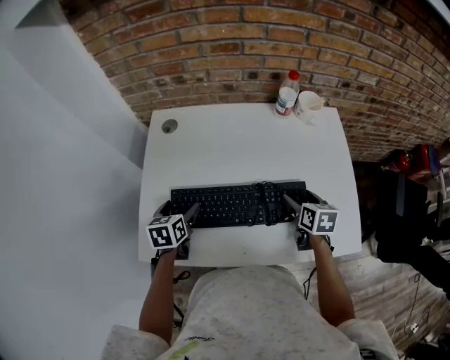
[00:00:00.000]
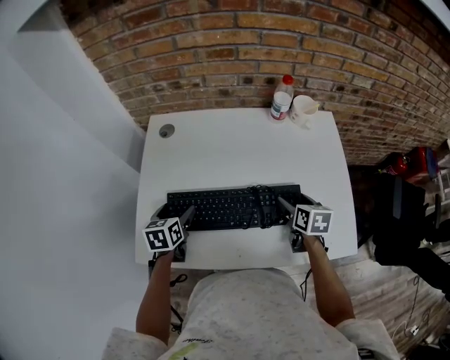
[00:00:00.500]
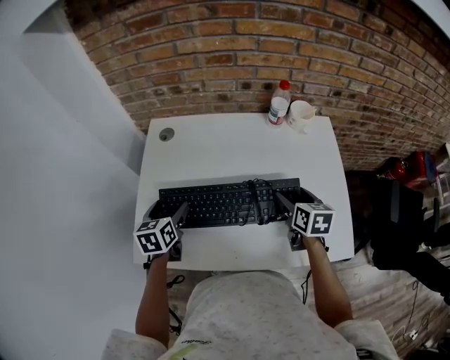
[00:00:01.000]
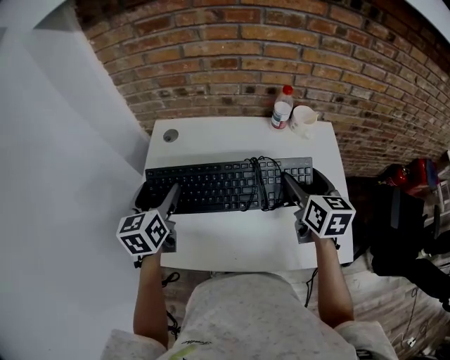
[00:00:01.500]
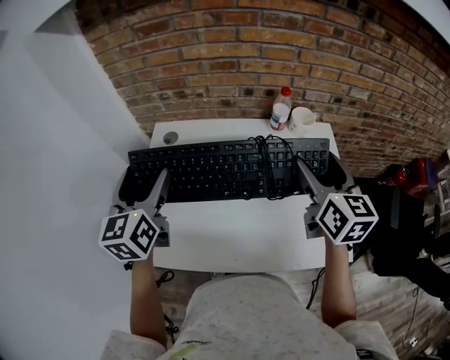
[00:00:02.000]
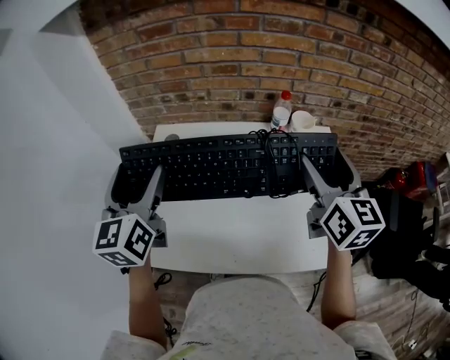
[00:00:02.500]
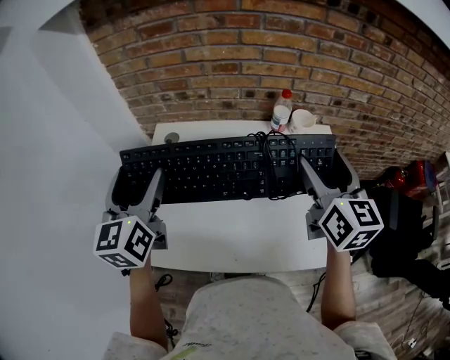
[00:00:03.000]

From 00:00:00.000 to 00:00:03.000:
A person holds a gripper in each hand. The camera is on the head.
From 00:00:00.000 to 00:00:01.500: Both grippers travel together upward, roughly 15 cm. The right gripper turns by some 20 degrees. The left gripper rotates approximately 30 degrees.
From 00:00:01.500 to 00:00:03.000: The grippers both shift upward by some 15 cm.

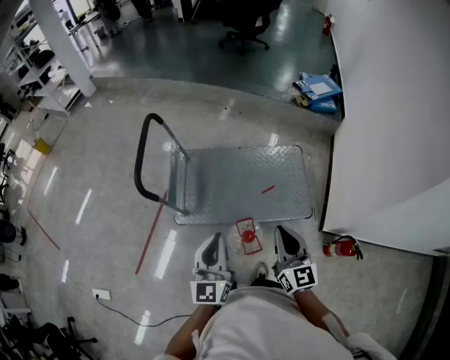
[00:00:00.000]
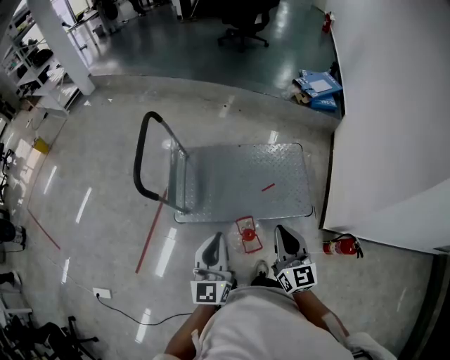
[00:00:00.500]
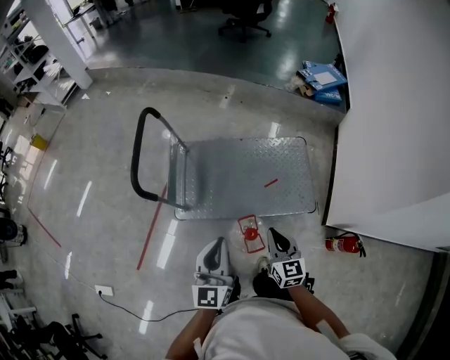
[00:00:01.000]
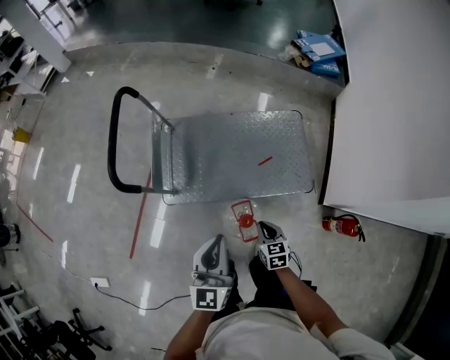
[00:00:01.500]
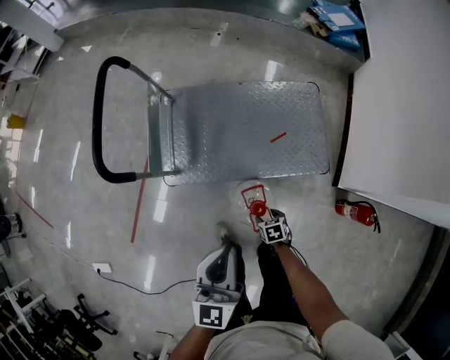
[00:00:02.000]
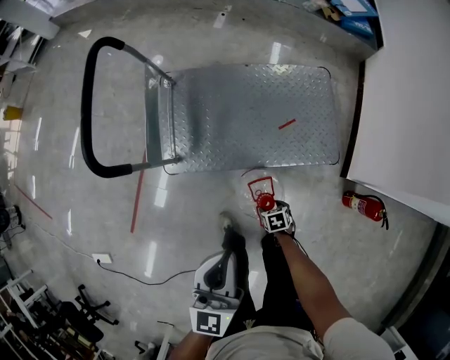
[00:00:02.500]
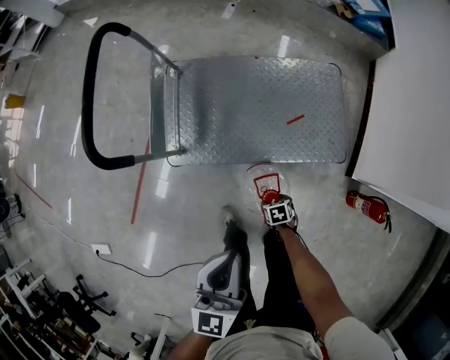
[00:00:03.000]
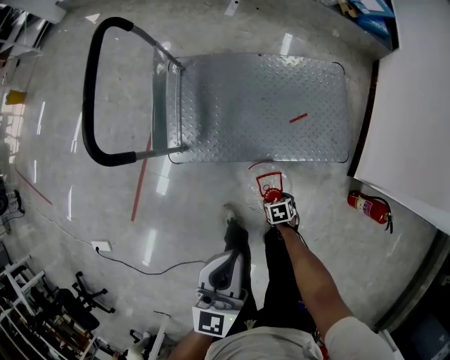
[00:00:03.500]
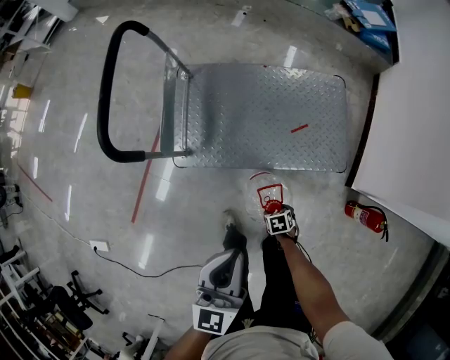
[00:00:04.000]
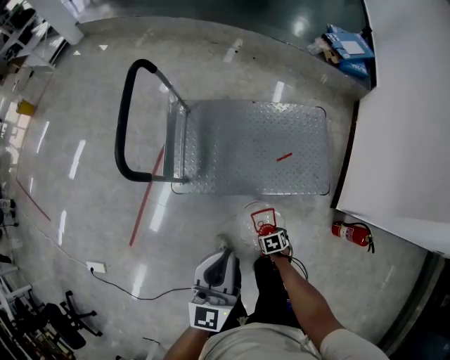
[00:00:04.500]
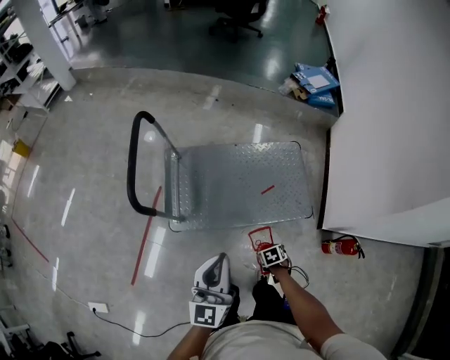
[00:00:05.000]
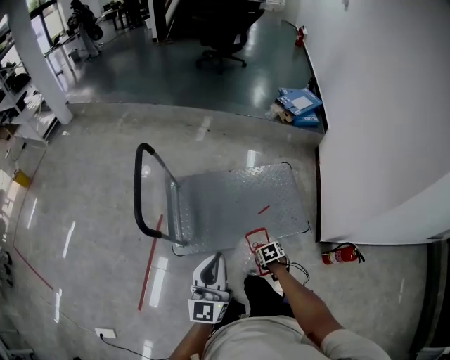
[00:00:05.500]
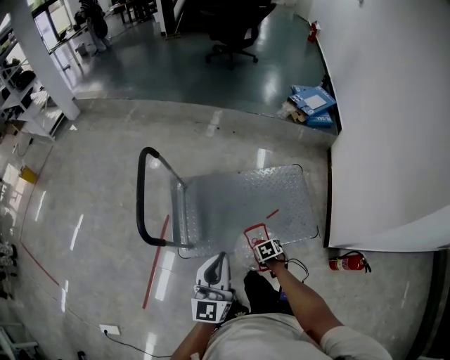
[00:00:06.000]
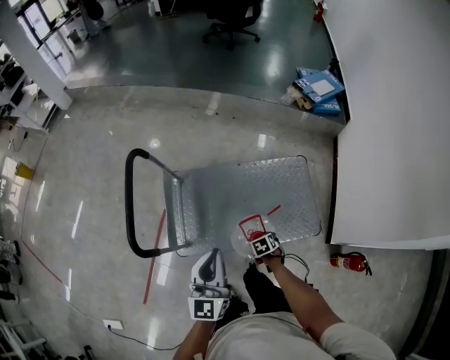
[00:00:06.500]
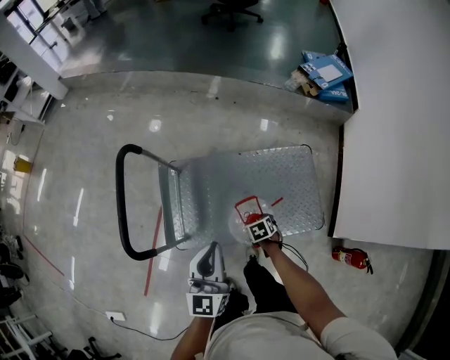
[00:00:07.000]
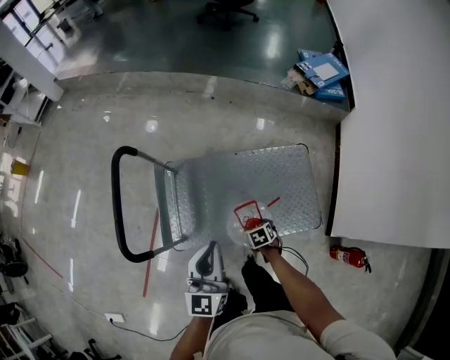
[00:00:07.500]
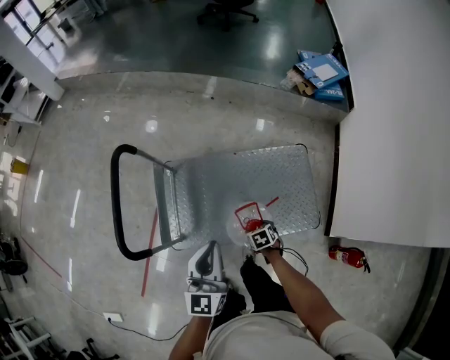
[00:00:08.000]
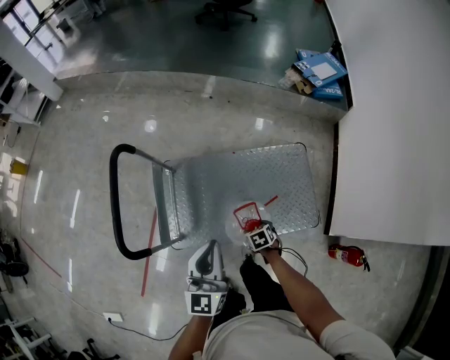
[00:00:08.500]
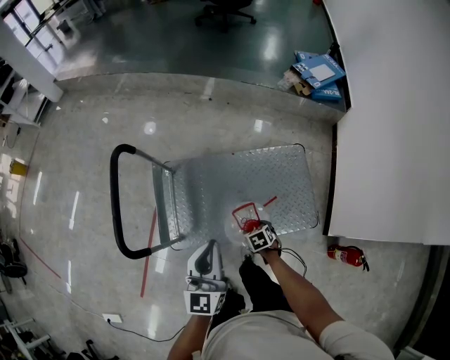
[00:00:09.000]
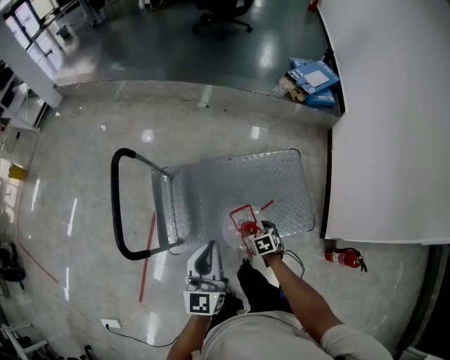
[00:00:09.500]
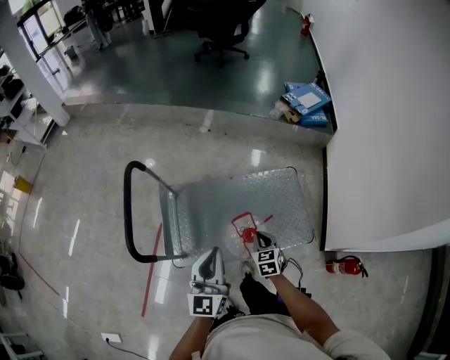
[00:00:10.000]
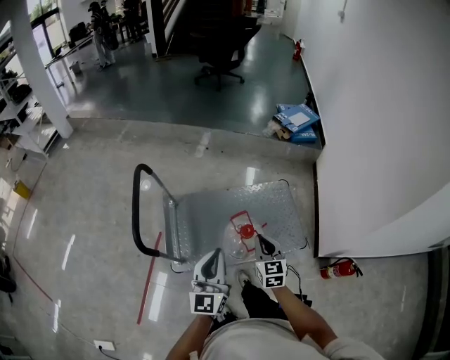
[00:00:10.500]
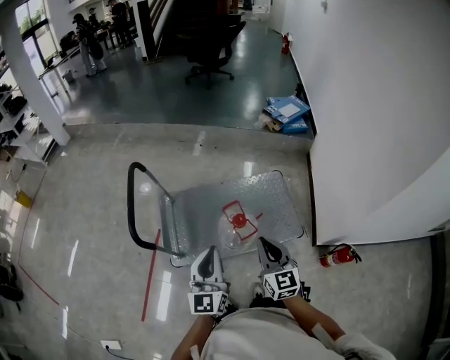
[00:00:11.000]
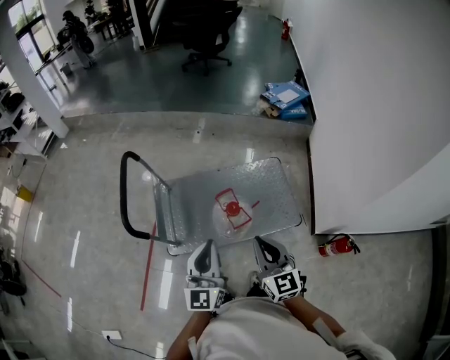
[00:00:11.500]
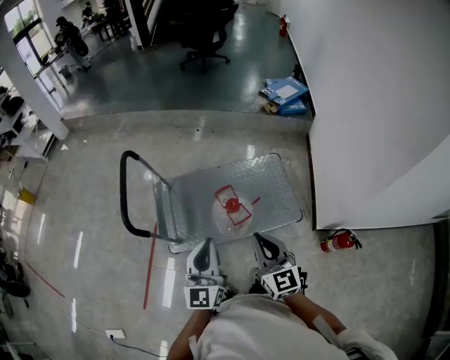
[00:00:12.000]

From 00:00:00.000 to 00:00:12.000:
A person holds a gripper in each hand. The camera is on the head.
From 00:00:00.000 to 00:00:02.000: The left gripper heads downward, covering roughly 10 cm; the right gripper moves downward, about 50 cm, points its fingers about 70 degrees further downward, and opens.
From 00:00:02.000 to 00:00:04.000: The right gripper goes about 5 cm downward; the left gripper changes place by about 5 cm.
From 00:00:04.000 to 00:00:06.000: The two grippers go about 20 cm upward.
From 00:00:06.000 to 00:00:08.000: The right gripper moves some 15 cm; the left gripper ends up some 20 cm from where it was.
From 00:00:08.000 to 00:00:10.000: The left gripper heads backward, covering some 5 cm; the right gripper is displaced upward by about 20 cm, tilts its fingers about 30 degrees upward, and closes.
From 00:00:10.000 to 00:00:12.000: The left gripper shifts about 15 cm backward. The right gripper moves upward and backward, roughly 35 cm, and tips its fingers upward by about 30 degrees.

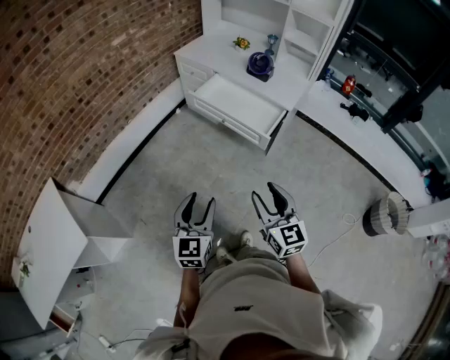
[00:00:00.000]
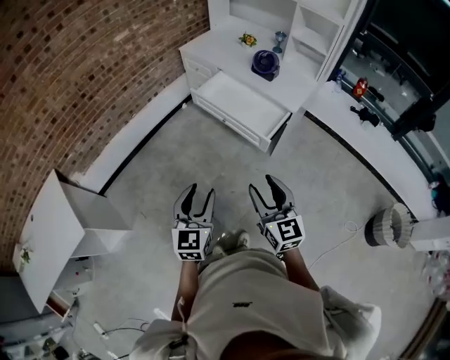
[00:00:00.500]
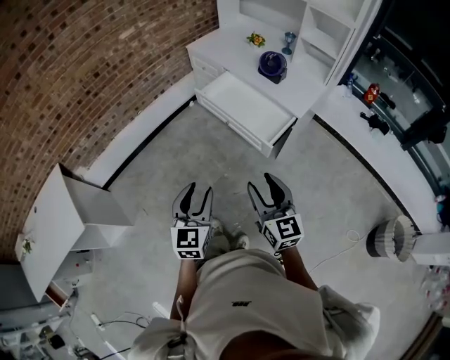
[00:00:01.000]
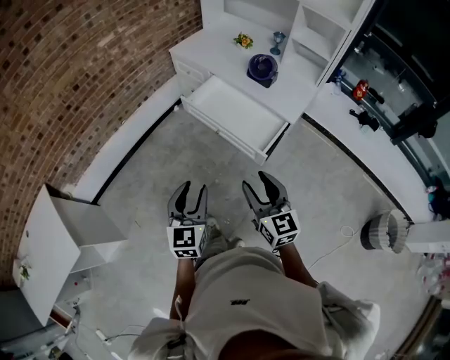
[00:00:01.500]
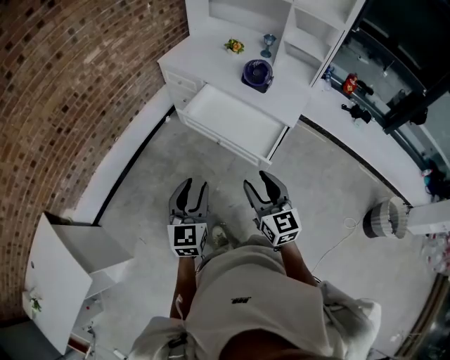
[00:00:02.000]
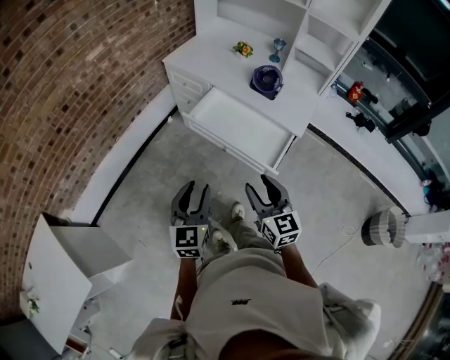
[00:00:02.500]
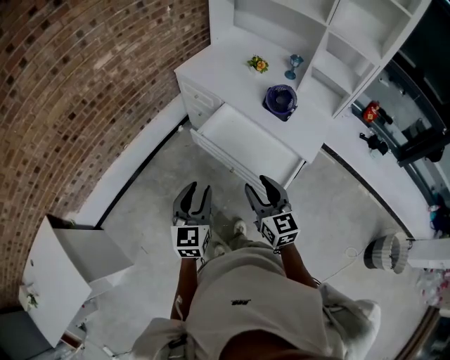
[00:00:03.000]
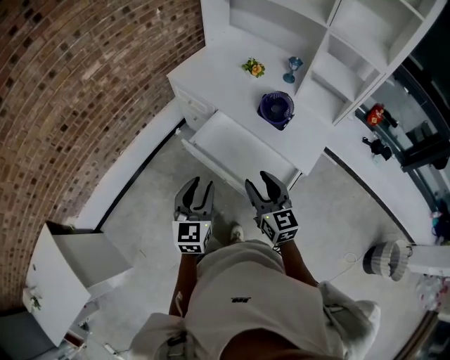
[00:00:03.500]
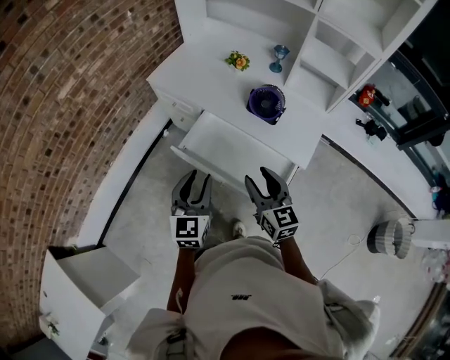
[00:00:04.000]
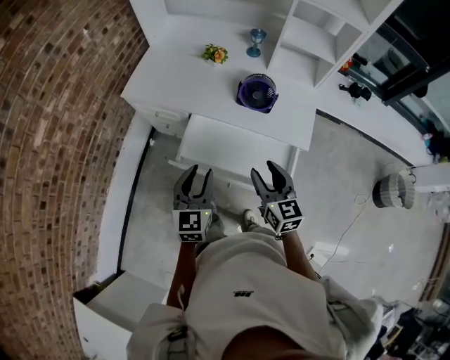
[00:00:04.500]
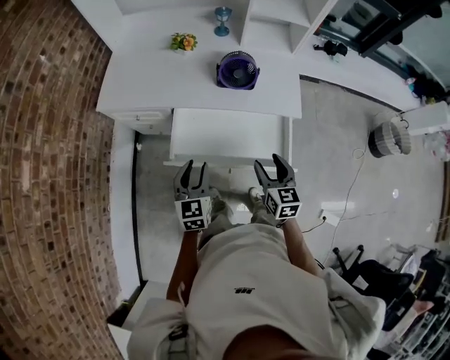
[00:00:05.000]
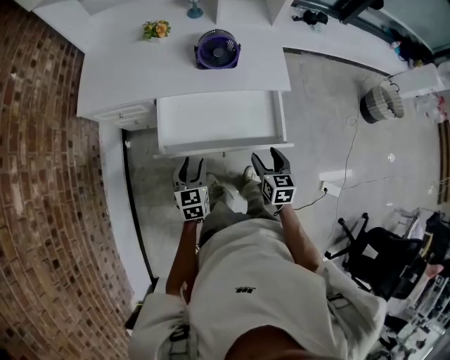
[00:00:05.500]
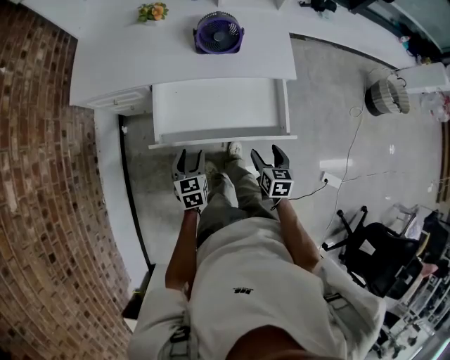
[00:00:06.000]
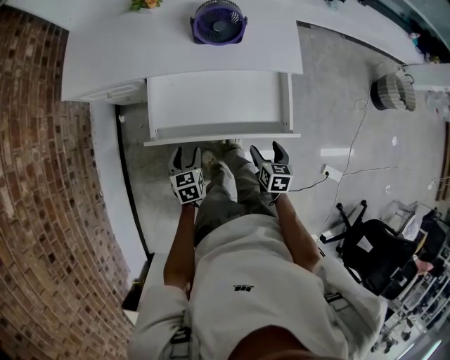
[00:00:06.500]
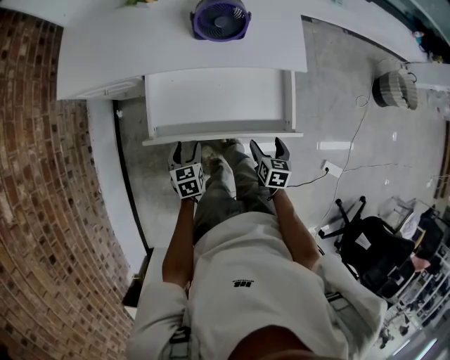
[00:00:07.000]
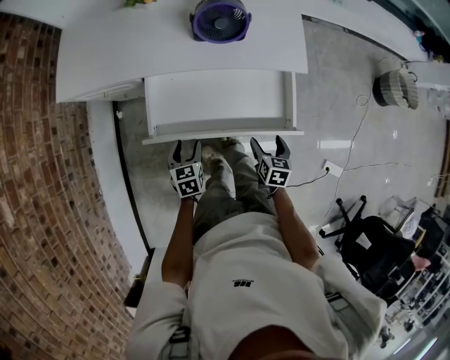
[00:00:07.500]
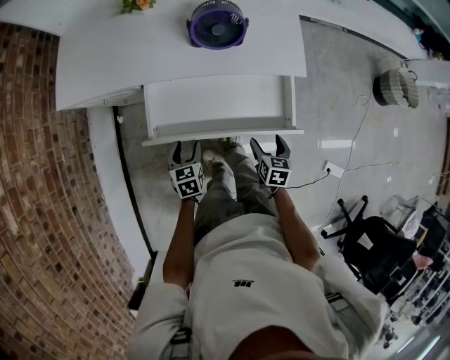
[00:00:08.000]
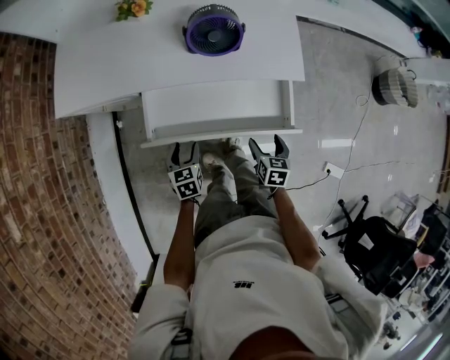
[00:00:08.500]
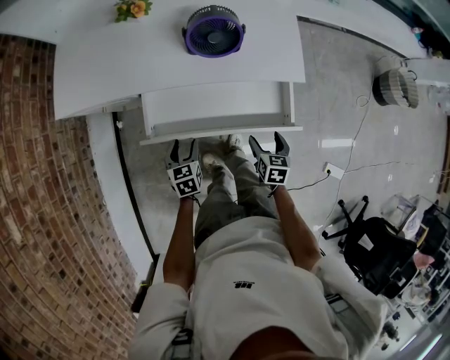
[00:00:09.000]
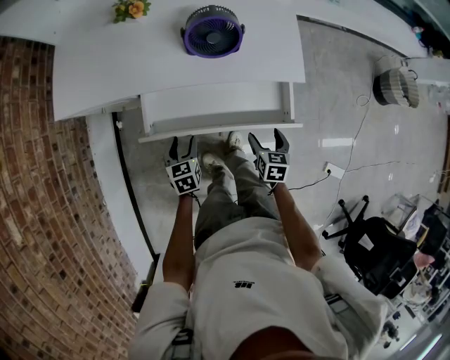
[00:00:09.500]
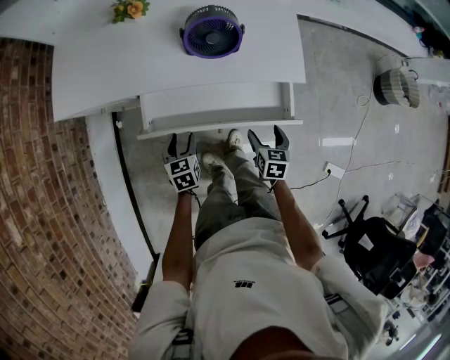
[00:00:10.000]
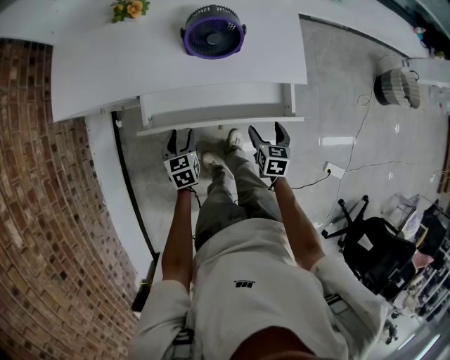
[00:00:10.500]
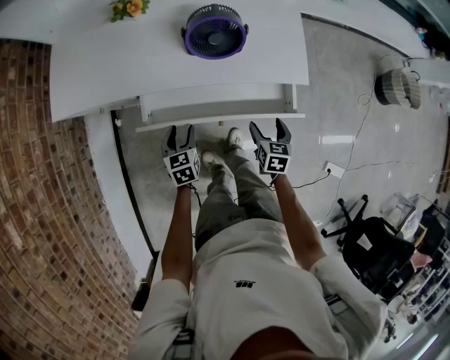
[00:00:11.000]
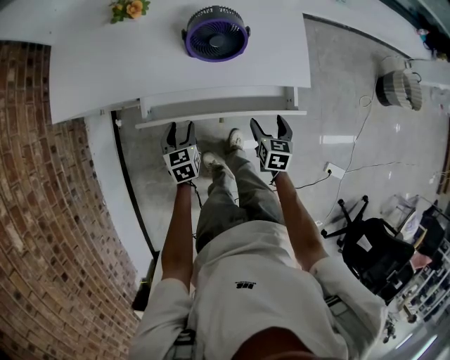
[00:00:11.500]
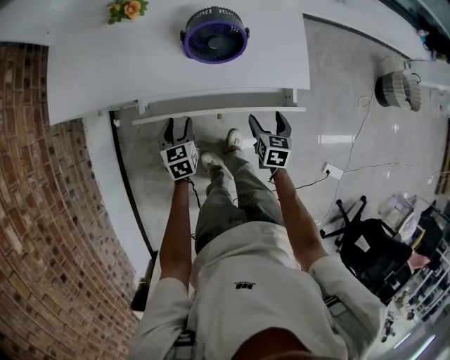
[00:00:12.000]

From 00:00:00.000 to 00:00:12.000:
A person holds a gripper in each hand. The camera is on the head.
From 00:00:00.000 to 00:00:02.000: The grippers both shift forward by some 25 cm.
From 00:00:02.000 to 00:00:04.000: Both grippers travel together forward, roughly 30 cm.
From 00:00:04.000 to 00:00:06.000: Both grippers travel together downward, roughly 30 cm. The left gripper turns by about 40 degrees; the right gripper rotates approximately 60 degrees.
From 00:00:06.000 to 00:00:08.000: Both grippers move downward and forward, roughly 10 cm.
From 00:00:08.000 to 00:00:10.000: The two grippers go about 5 cm forward.
From 00:00:10.000 to 00:00:12.000: Both grippers move forward, roughly 10 cm.
